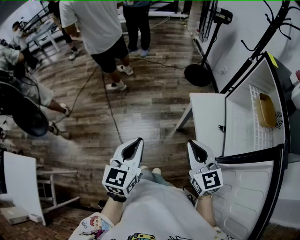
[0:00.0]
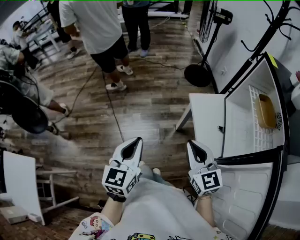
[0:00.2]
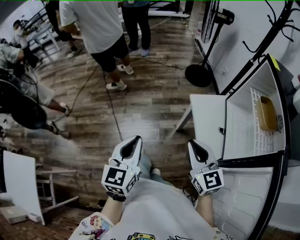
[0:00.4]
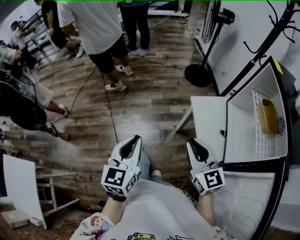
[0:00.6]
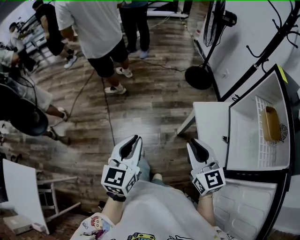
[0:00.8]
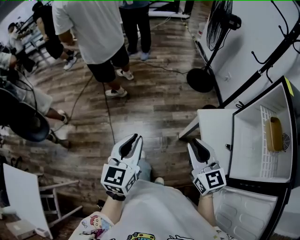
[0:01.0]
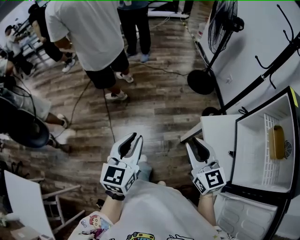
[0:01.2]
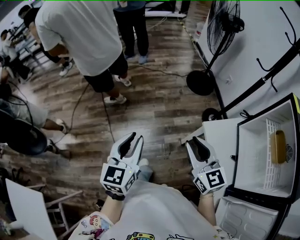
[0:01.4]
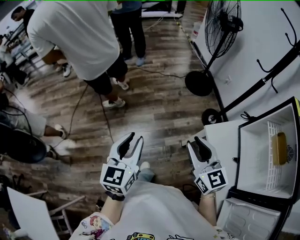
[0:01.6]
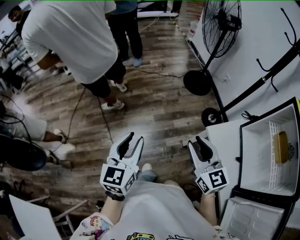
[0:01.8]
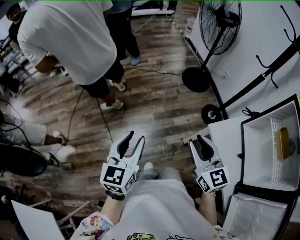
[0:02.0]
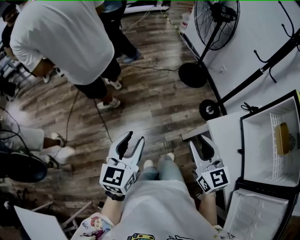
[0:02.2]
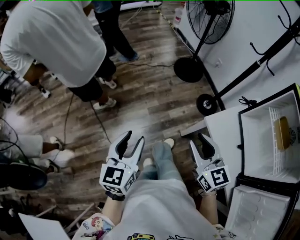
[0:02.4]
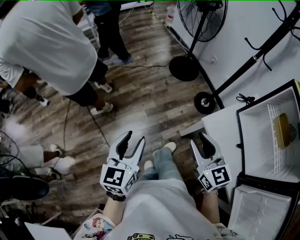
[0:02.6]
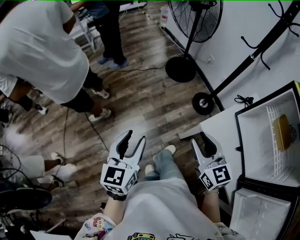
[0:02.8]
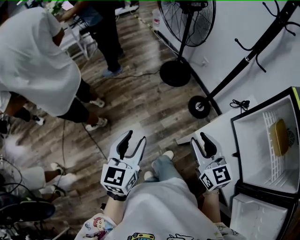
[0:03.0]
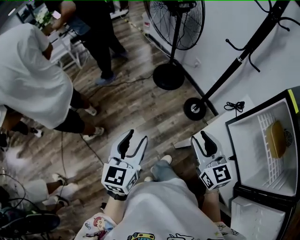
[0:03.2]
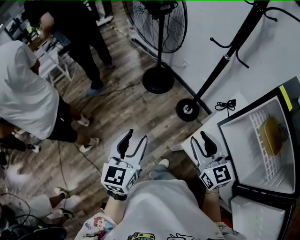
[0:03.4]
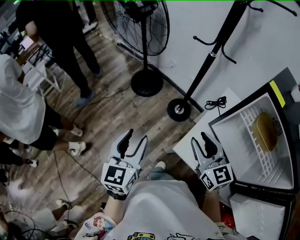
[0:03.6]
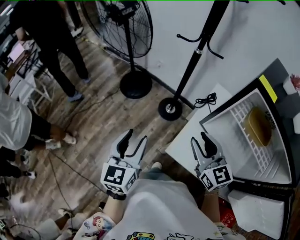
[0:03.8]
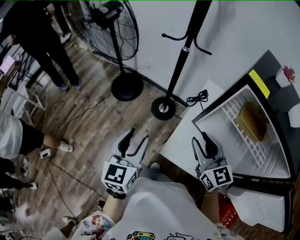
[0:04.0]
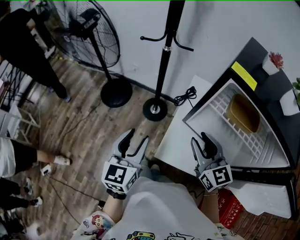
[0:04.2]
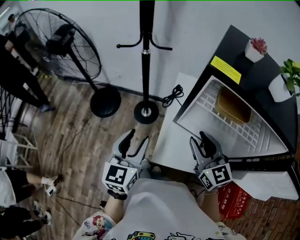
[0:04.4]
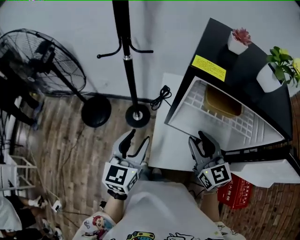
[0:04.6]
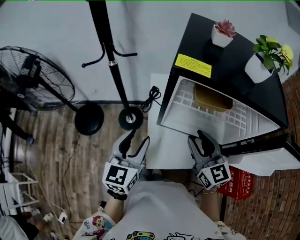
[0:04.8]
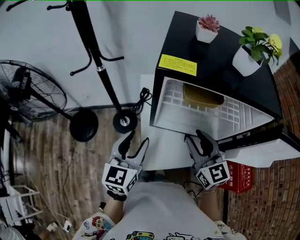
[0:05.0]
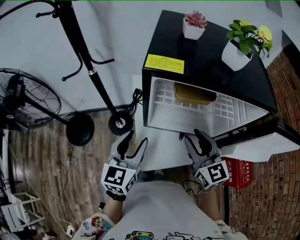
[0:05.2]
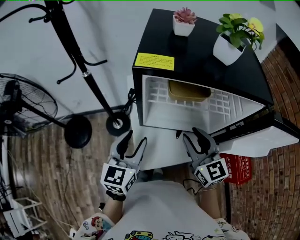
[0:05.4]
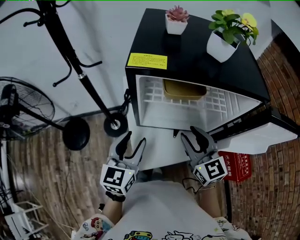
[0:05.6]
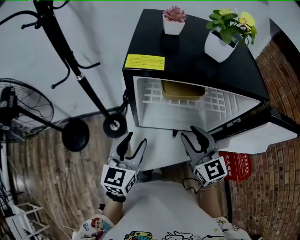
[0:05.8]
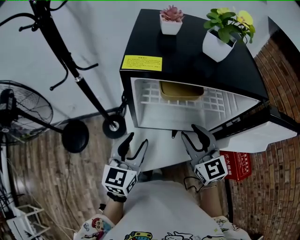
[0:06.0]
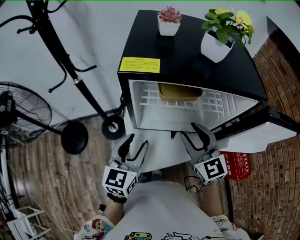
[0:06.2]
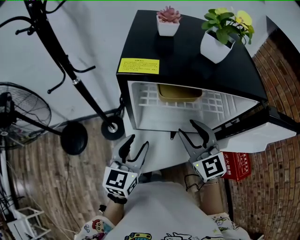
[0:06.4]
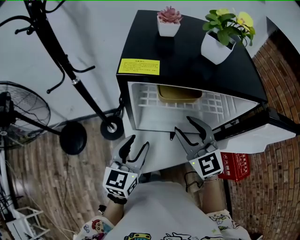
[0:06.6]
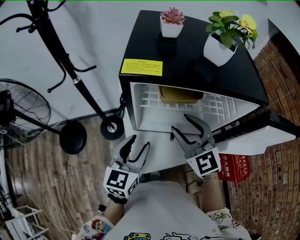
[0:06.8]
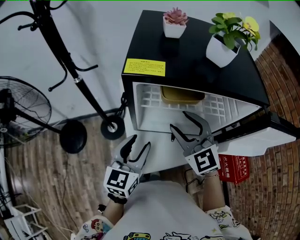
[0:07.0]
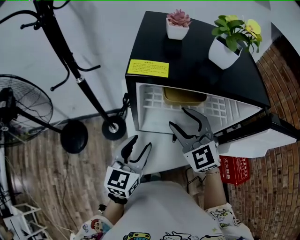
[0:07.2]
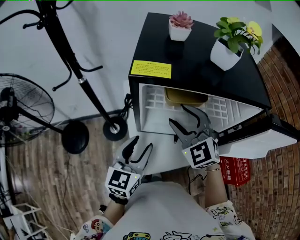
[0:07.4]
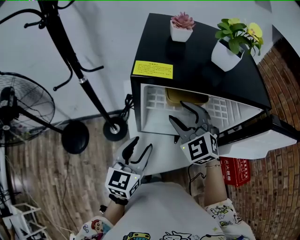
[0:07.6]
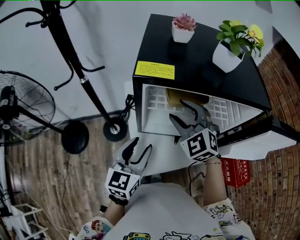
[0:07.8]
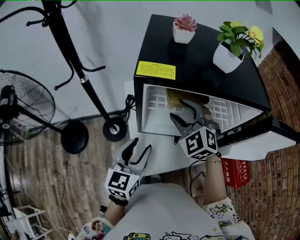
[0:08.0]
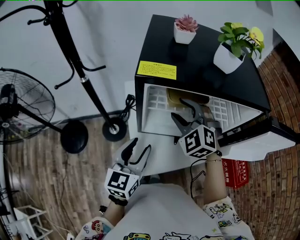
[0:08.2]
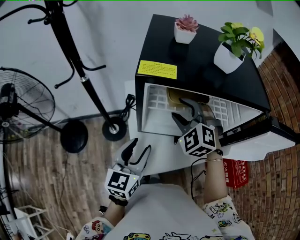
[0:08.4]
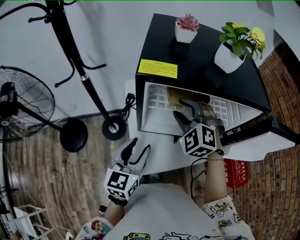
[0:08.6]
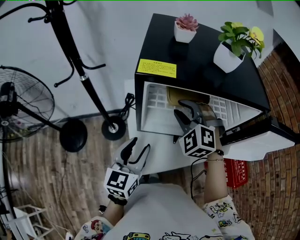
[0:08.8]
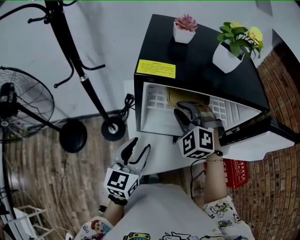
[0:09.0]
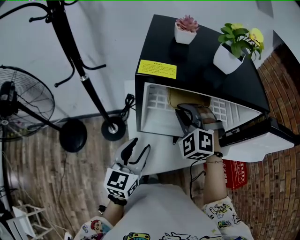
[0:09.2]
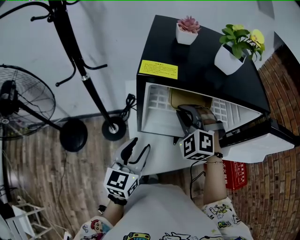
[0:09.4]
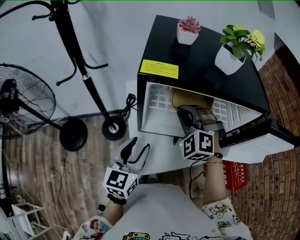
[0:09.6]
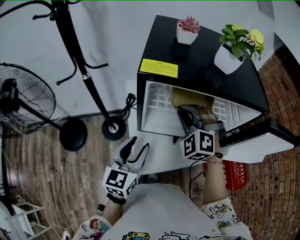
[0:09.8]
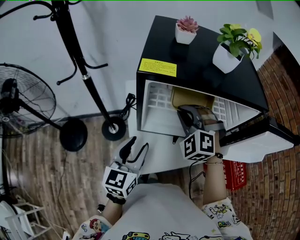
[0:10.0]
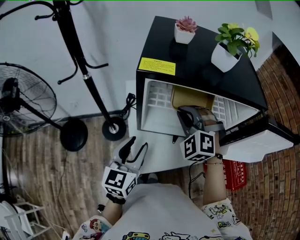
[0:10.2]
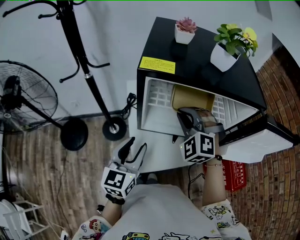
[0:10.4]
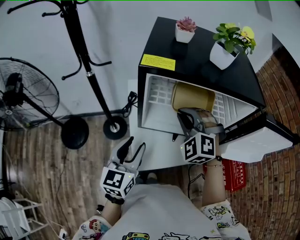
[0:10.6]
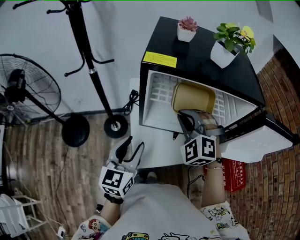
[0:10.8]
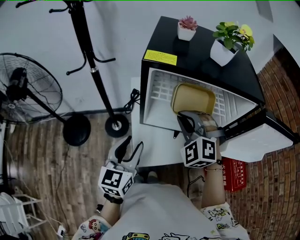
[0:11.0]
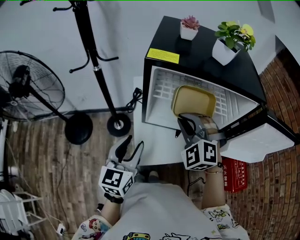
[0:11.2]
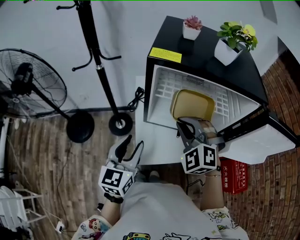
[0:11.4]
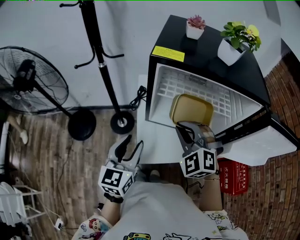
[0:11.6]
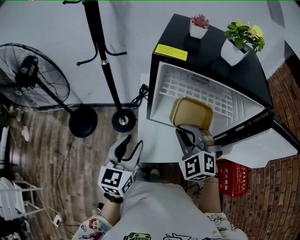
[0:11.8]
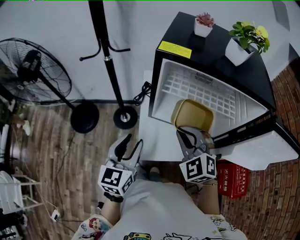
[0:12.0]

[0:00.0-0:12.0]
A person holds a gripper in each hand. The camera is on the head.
0.0 to 1.6 s: The right gripper heads forward, covering about 25 cm, and opens up. The left gripper heads forward and to the left, covering roughly 30 cm, and opens.
1.6 to 3.0 s: The right gripper shifts approximately 15 cm forward and to the right. The left gripper travels forward by roughly 15 cm.
3.0 to 4.4 s: The right gripper changes place by approximately 25 cm, and rotates approximately 40 degrees; the left gripper moves some 30 cm, and rotates some 50 degrees.
4.4 to 6.0 s: The right gripper moves approximately 10 cm, and turns by about 30 degrees; the left gripper changes place by approximately 15 cm, and turns by about 30 degrees.
6.0 to 7.6 s: The right gripper heads forward and to the left, covering about 10 cm, and rotates roughly 30 degrees.
7.6 to 9.0 s: The right gripper changes its angle by about 20 degrees, and closes.
9.0 to 10.4 s: The grippers make only small movements.
10.4 to 12.0 s: The right gripper moves backward, approximately 10 cm, and swivels about 20 degrees, while the left gripper goes about 5 cm backward.

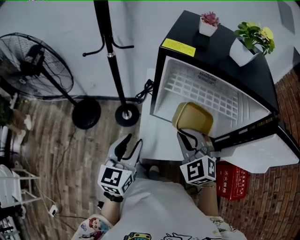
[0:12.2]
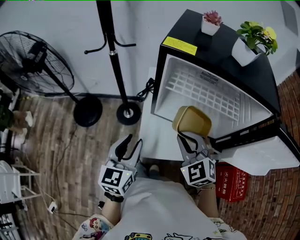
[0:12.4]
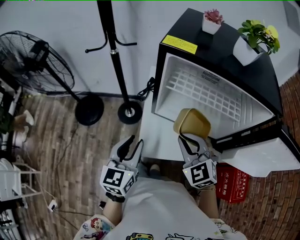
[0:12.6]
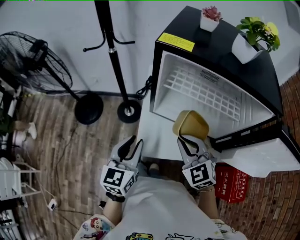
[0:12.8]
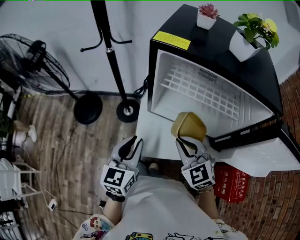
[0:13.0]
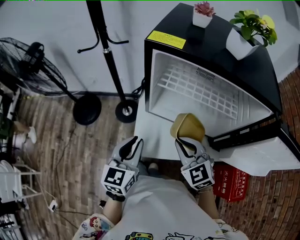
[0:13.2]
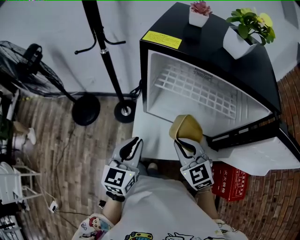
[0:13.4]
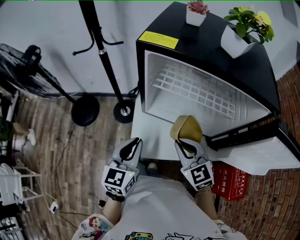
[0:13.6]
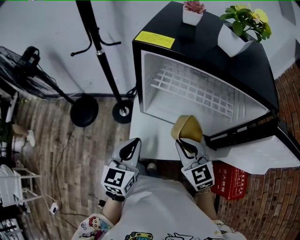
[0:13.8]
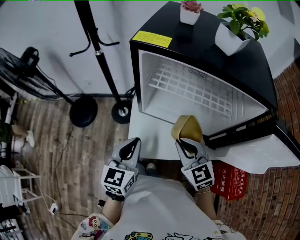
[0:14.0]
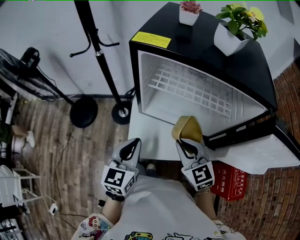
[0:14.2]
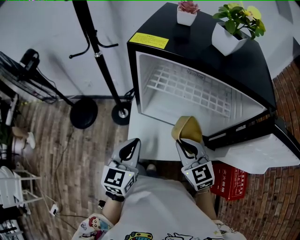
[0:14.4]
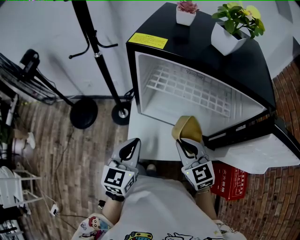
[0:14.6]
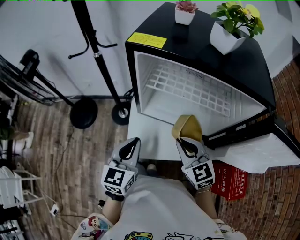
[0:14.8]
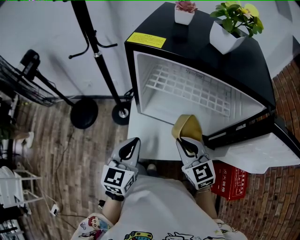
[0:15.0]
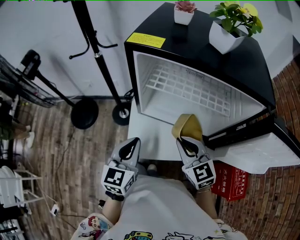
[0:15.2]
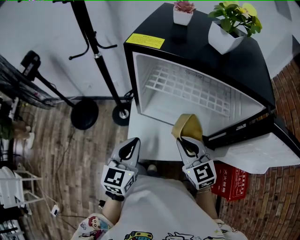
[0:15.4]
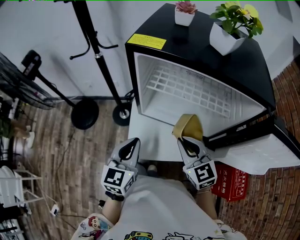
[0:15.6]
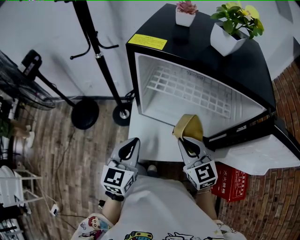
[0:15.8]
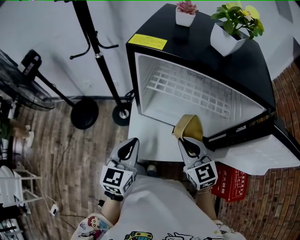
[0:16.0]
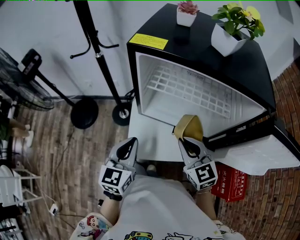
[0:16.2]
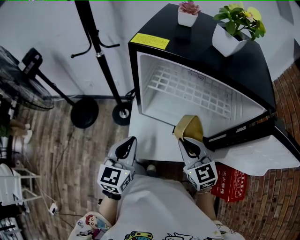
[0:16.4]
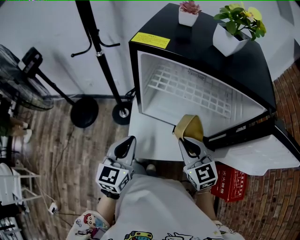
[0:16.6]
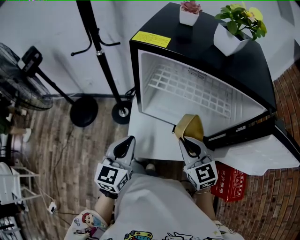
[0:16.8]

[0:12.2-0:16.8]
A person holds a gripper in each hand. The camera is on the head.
12.2 to 13.8 s: The two grippers go roughly 5 cm to the right. The left gripper closes its fingers, while the right gripper turns by some 30 degrees.
13.8 to 16.8 s: The grippers make only small movements.

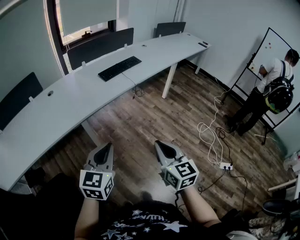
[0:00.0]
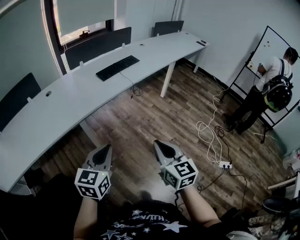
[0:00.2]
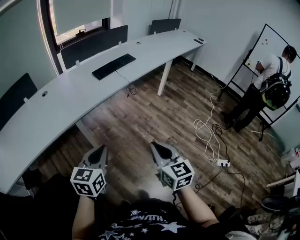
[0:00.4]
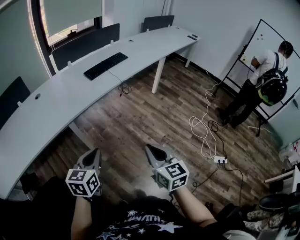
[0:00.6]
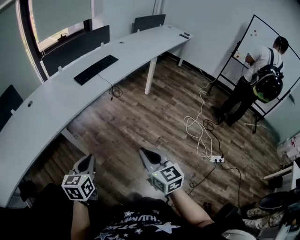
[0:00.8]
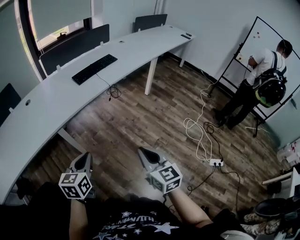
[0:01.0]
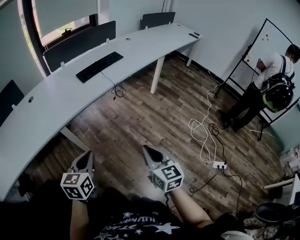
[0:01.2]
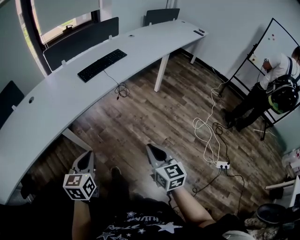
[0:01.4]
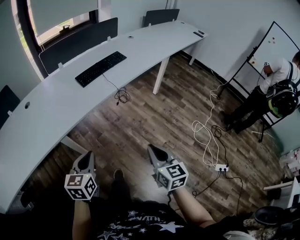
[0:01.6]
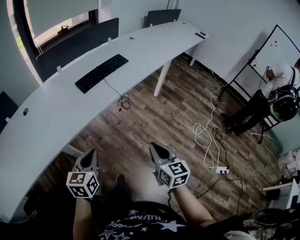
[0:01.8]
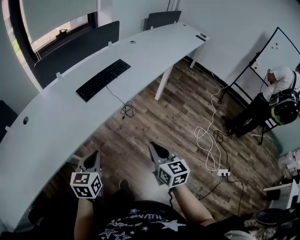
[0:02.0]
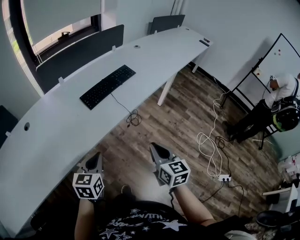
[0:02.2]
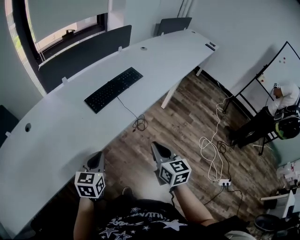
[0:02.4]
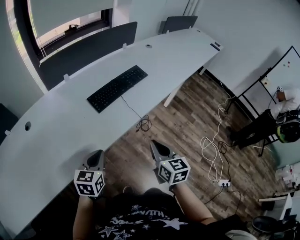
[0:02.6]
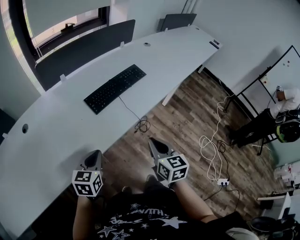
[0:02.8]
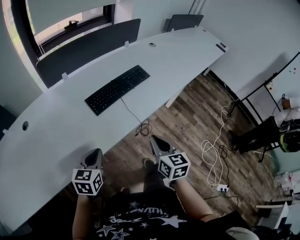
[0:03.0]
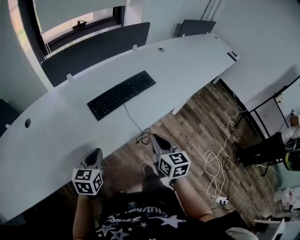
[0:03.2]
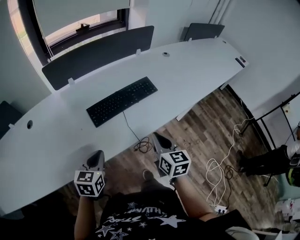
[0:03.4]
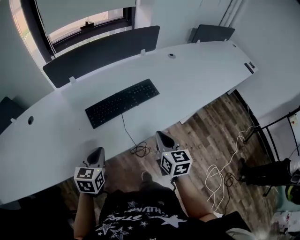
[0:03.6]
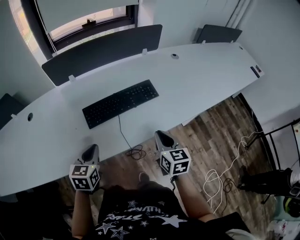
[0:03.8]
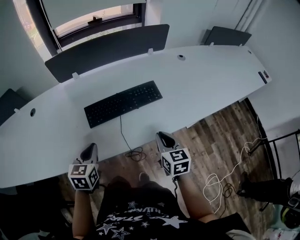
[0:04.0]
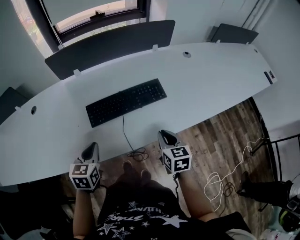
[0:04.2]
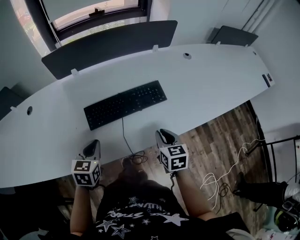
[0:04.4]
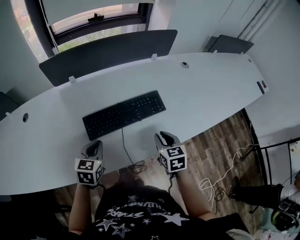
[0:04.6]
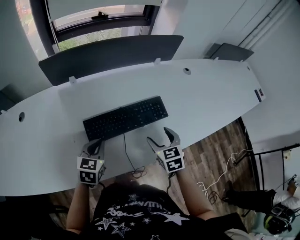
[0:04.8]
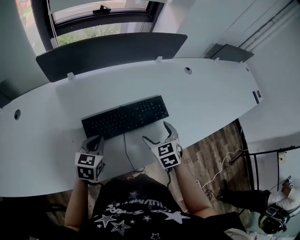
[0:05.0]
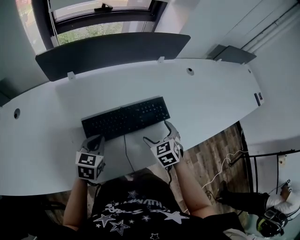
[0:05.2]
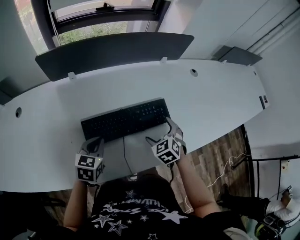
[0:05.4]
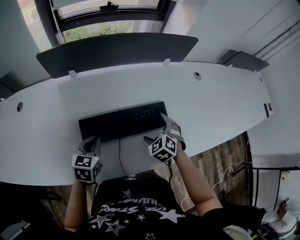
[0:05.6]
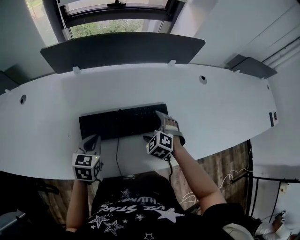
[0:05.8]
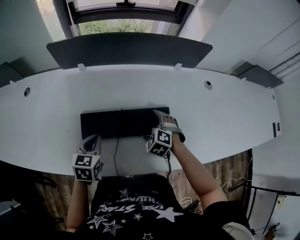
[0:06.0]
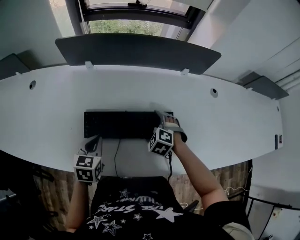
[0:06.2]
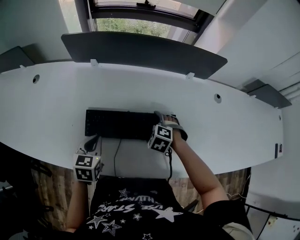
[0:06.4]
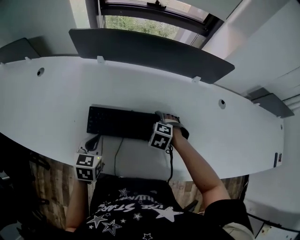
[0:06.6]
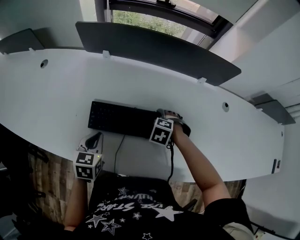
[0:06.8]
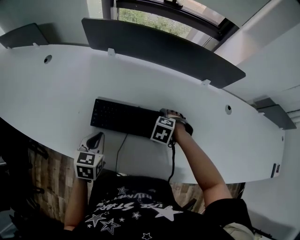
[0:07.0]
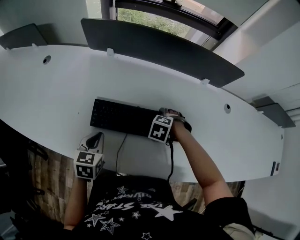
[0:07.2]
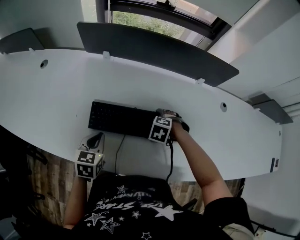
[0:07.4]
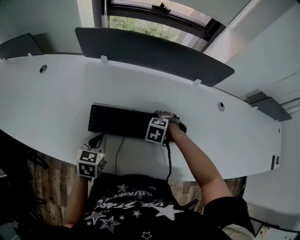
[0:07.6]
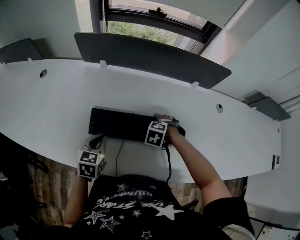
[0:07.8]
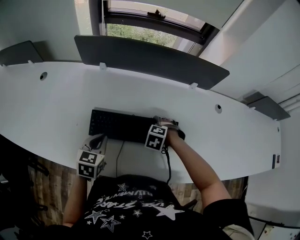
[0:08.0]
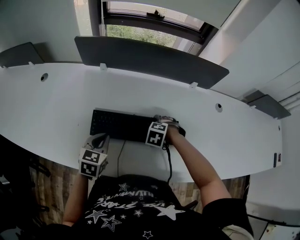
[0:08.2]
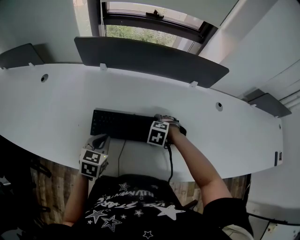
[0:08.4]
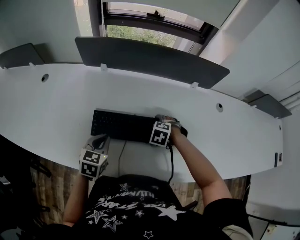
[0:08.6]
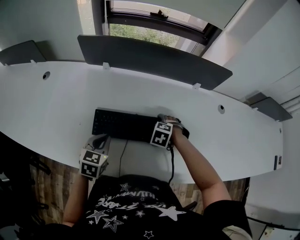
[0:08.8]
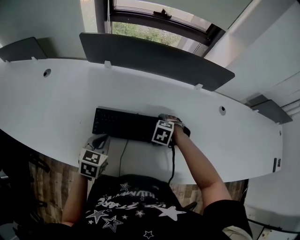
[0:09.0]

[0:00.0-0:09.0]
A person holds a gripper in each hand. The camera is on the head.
0.0 to 1.6 s: The right gripper travels forward, downward and to the right by roughly 20 cm, while the left gripper goes about 20 cm forward and downward.
1.6 to 3.0 s: Both grippers travel together forward, approximately 30 cm.
3.0 to 4.4 s: Both grippers travel together forward and to the right, about 20 cm. The right gripper turns by approximately 20 degrees. The left gripper swivels roughly 20 degrees.
4.4 to 6.0 s: The right gripper goes some 20 cm forward and downward, twists some 70 degrees counterclockwise, seen from behind, and opens up, while the left gripper is displaced forward by about 10 cm.
6.0 to 7.6 s: The right gripper swivels about 30 degrees.
7.6 to 9.0 s: The grippers stay close to where they were, moving slightly.
